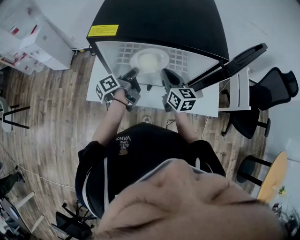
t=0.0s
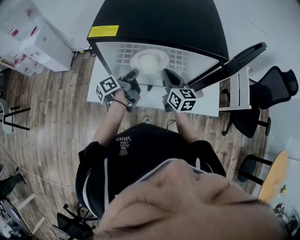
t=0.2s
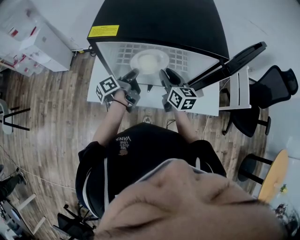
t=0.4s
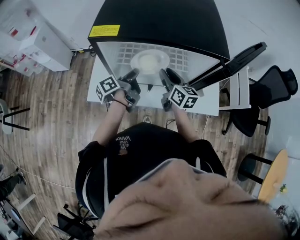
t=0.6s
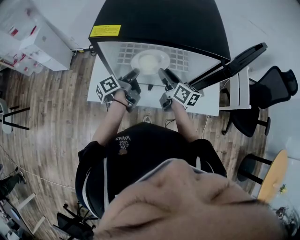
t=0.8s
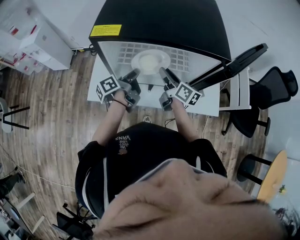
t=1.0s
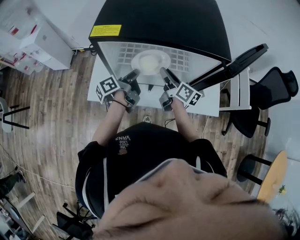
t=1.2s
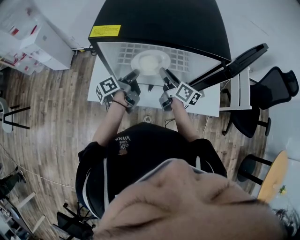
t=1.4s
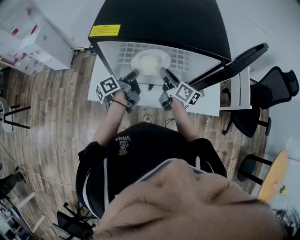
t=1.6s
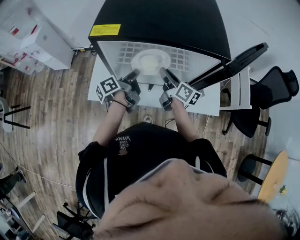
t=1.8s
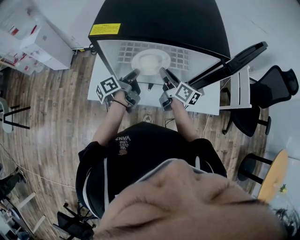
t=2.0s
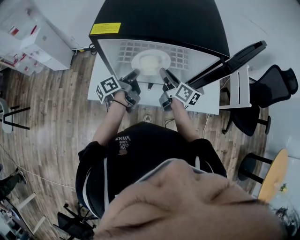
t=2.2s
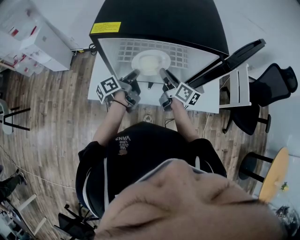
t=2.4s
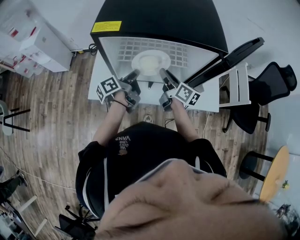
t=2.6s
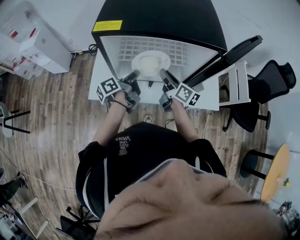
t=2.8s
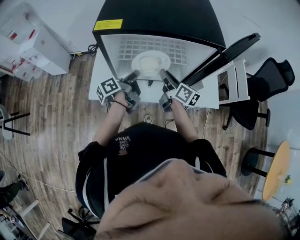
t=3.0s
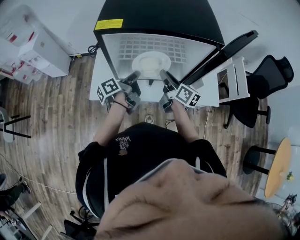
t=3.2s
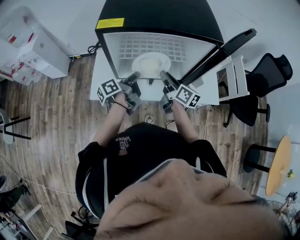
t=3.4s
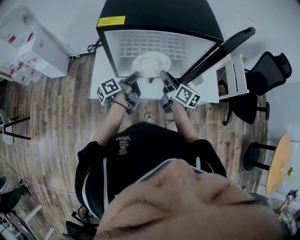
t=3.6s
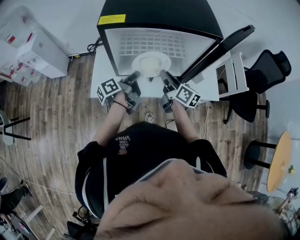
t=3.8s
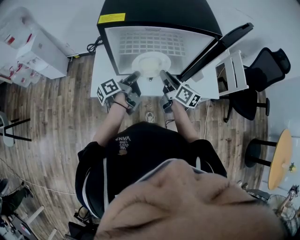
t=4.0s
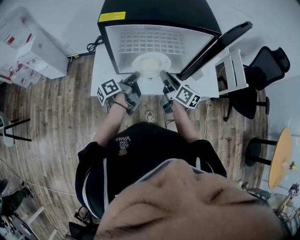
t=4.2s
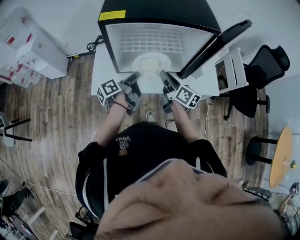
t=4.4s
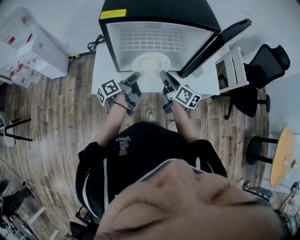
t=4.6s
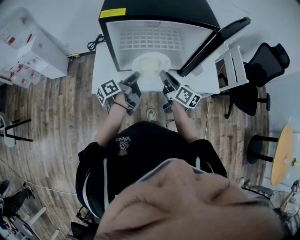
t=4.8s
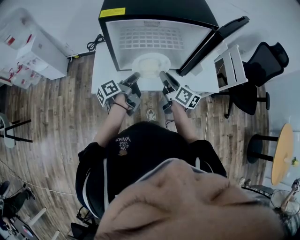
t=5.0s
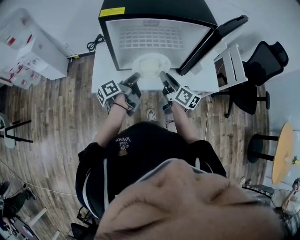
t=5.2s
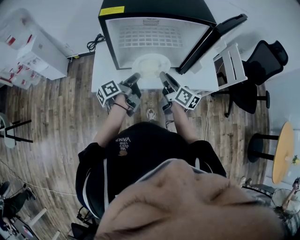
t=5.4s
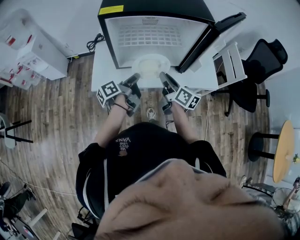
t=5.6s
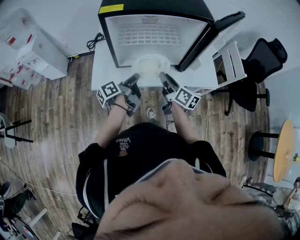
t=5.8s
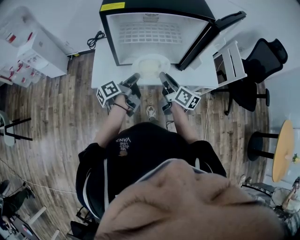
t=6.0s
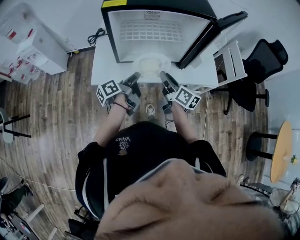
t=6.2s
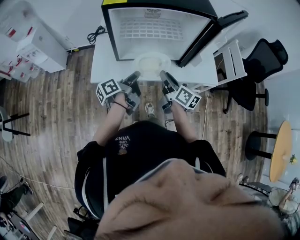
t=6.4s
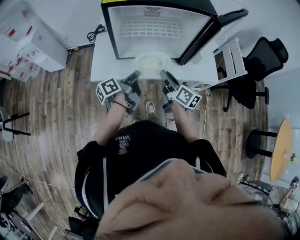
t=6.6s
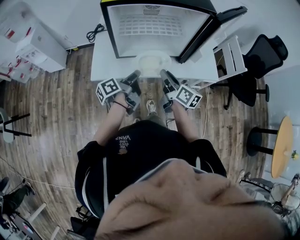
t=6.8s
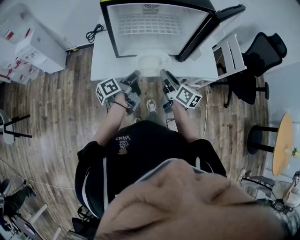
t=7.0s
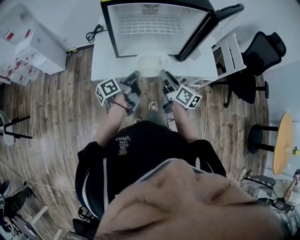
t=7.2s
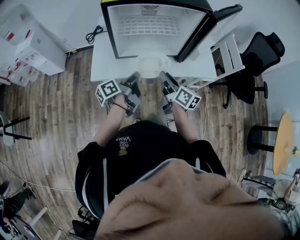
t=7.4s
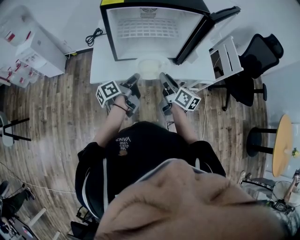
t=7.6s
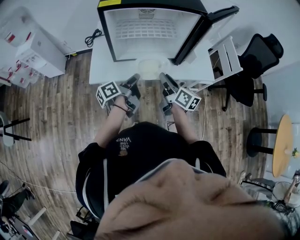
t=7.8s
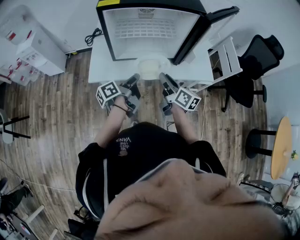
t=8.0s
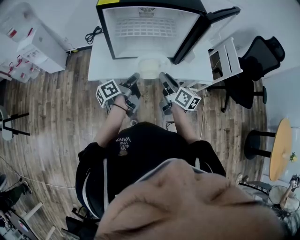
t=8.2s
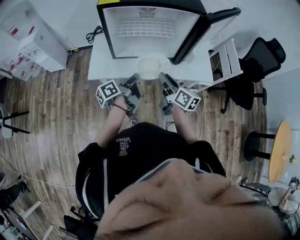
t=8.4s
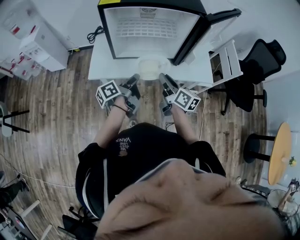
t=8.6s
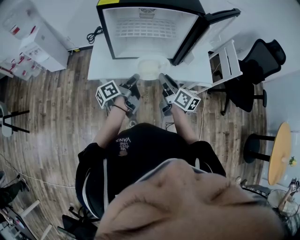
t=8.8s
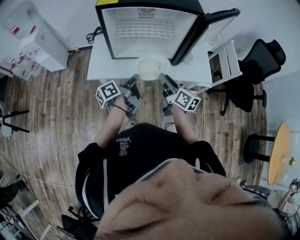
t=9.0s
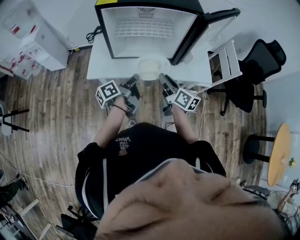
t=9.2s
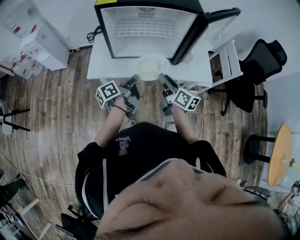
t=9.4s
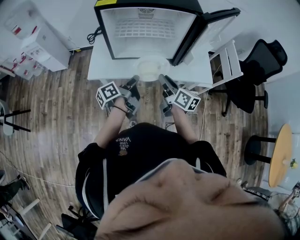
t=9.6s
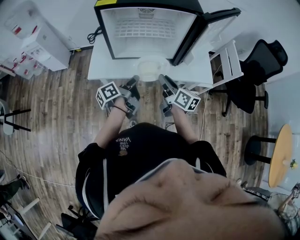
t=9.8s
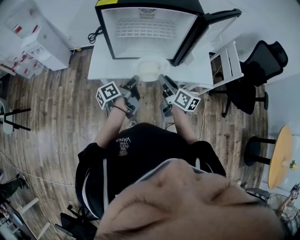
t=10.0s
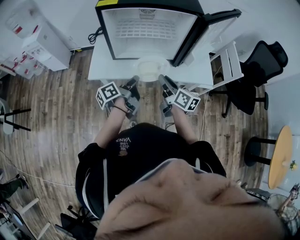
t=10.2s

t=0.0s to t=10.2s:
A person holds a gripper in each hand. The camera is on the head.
t=0.0s to t=1.4s: The right gripper swivels some 30 degrees, and opens.
t=1.4s to t=3.0s: The grippers stay close to where they were, moving slightly.
t=3.0s to t=4.4s: Both grippers travel together backward, some 5 cm.
t=4.4s to t=5.8s: Both grippers move backward, some 5 cm.
t=5.8s to t=7.2s: The grippers stay close to where they were, moving slightly.
t=7.2s to t=8.8s: There are only small adjustments of the grippers.
t=8.8s to t=10.2s: Neither gripper changes place.

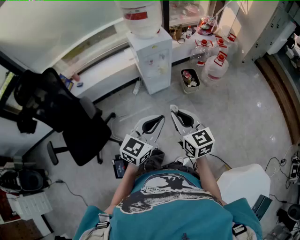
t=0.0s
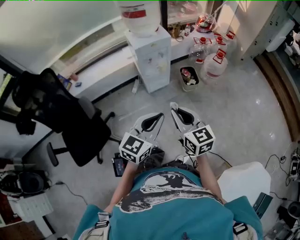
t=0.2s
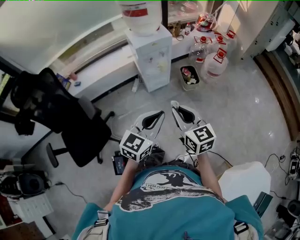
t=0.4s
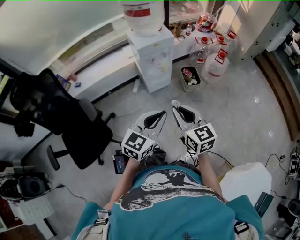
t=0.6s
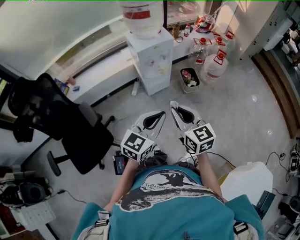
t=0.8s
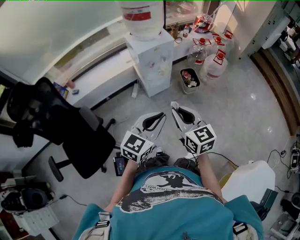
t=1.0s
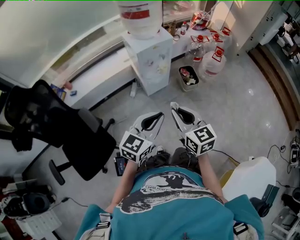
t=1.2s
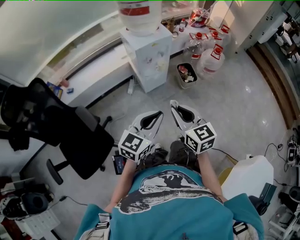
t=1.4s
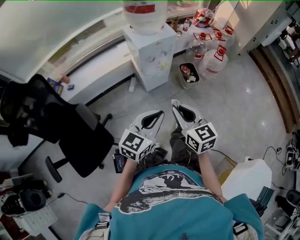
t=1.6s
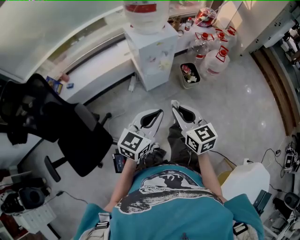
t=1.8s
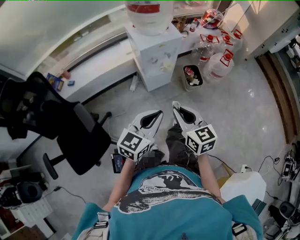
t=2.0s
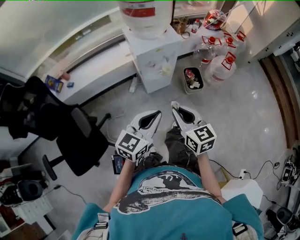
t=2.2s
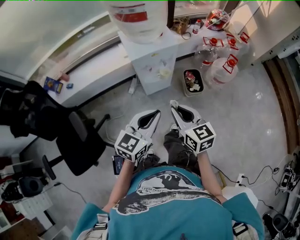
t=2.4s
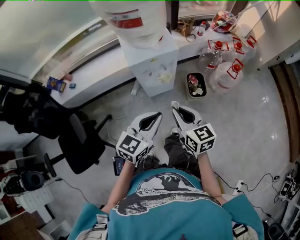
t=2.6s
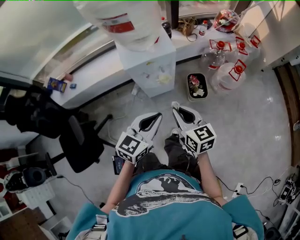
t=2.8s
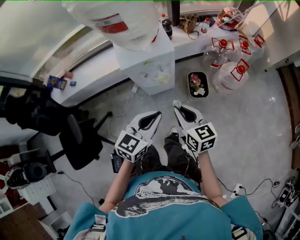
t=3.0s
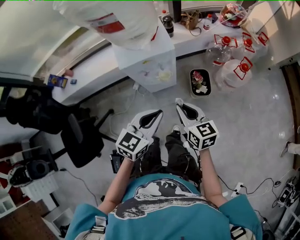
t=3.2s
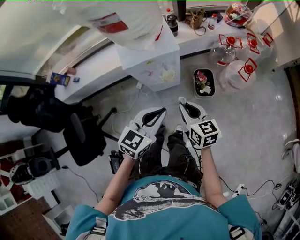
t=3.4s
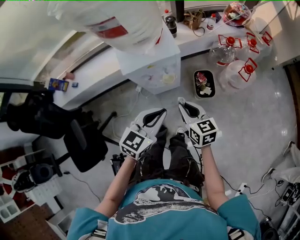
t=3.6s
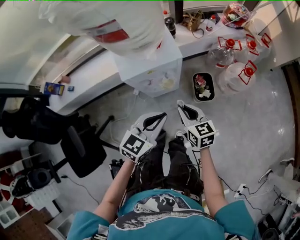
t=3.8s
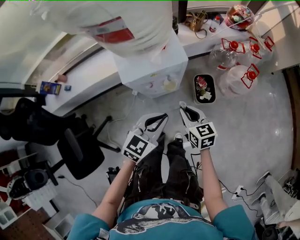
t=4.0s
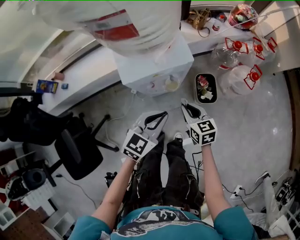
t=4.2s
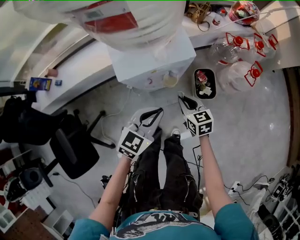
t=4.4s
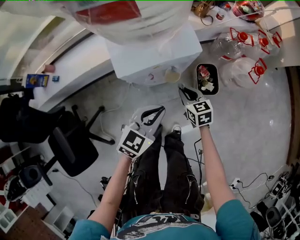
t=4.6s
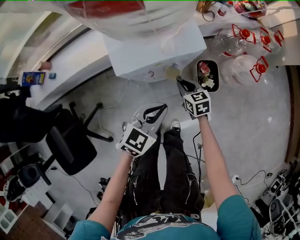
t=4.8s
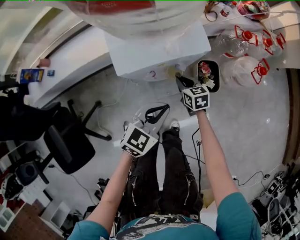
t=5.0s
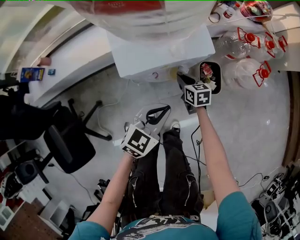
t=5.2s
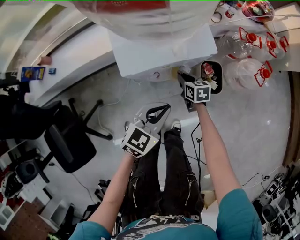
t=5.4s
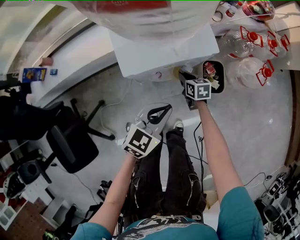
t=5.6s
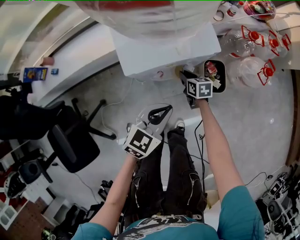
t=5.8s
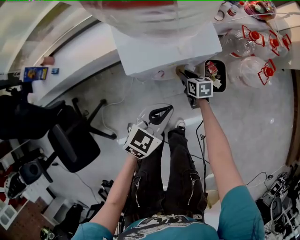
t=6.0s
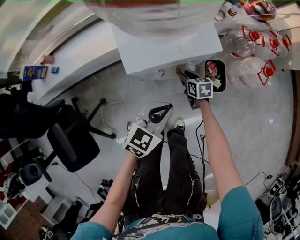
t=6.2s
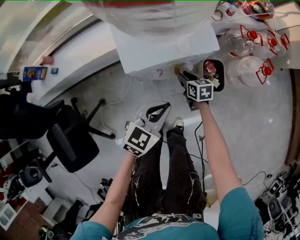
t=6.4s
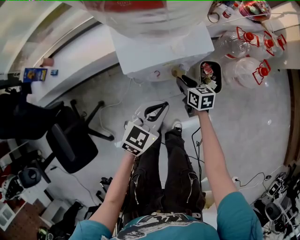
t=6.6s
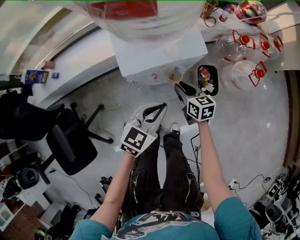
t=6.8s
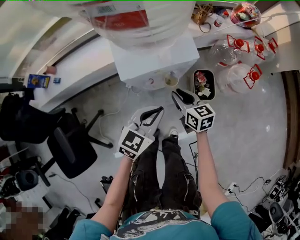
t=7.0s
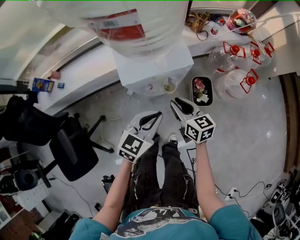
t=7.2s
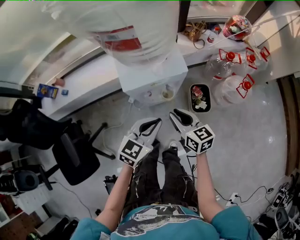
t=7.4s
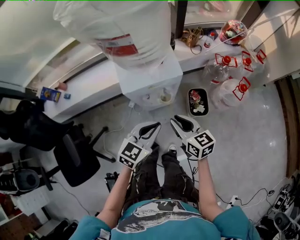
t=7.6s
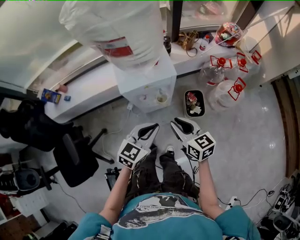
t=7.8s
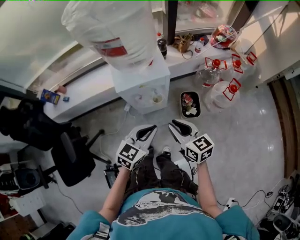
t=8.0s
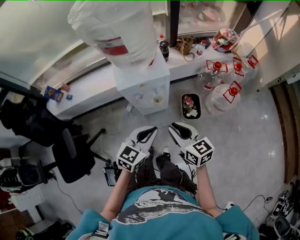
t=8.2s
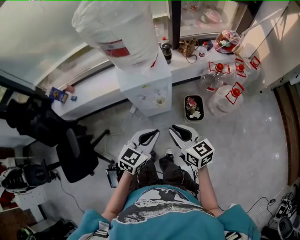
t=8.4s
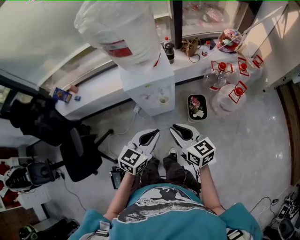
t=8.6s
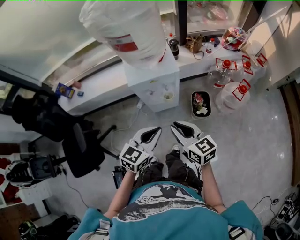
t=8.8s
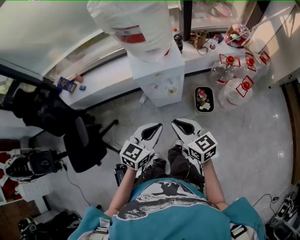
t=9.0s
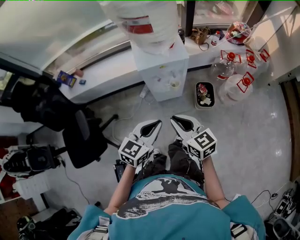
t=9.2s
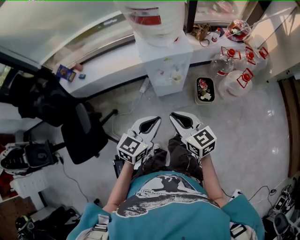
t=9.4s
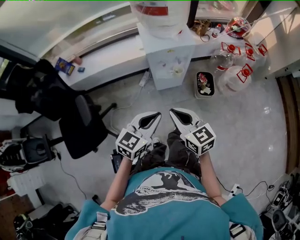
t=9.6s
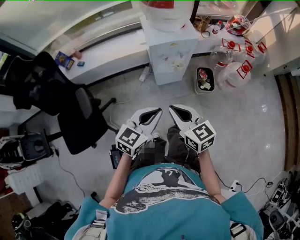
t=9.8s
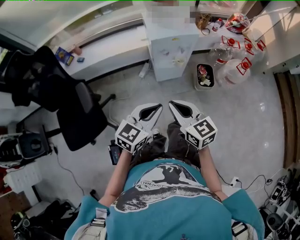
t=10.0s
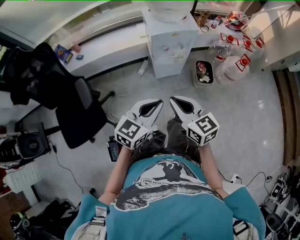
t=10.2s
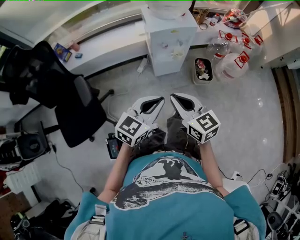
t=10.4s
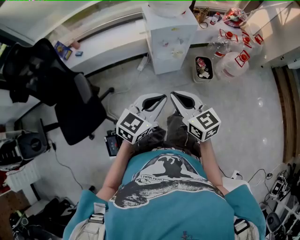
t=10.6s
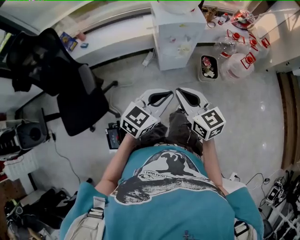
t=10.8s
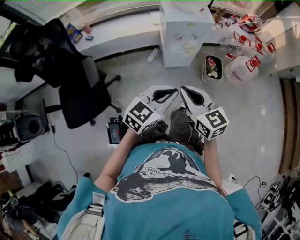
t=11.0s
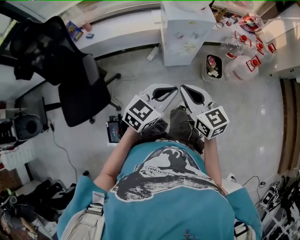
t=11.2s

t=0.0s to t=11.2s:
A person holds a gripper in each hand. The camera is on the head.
t=0.0s to t=1.6s: The grippers both shift to the left and forward by about 15 cm.
t=1.6s to t=3.2s: The two grippers go about 30 cm forward and to the right.
t=3.2s to t=4.8s: The left gripper shifts approximately 20 cm downward, forward and to the left; the right gripper goes some 30 cm downward and forward, and swivels some 20 degrees.
t=4.8s to t=6.4s: The right gripper changes place by approximately 5 cm.
t=6.4s to t=8.0s: The left gripper travels upward, backward and to the right by some 15 cm; the right gripper heads upward and backward, covering about 35 cm, and changes its angle by about 30 degrees.
t=8.0s to t=9.6s: The two grippers go roughly 20 cm backward and to the left.
t=9.6s to t=11.2s: Both grippers travel together backward, approximately 10 cm.

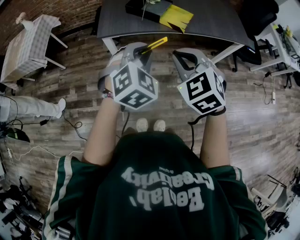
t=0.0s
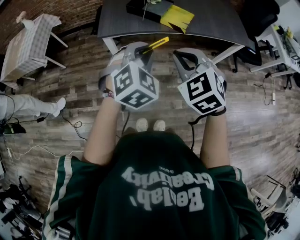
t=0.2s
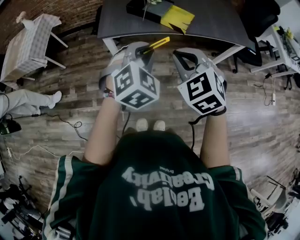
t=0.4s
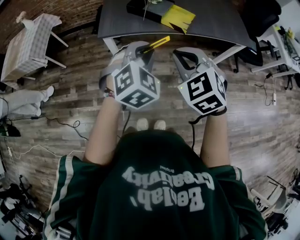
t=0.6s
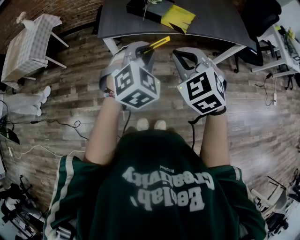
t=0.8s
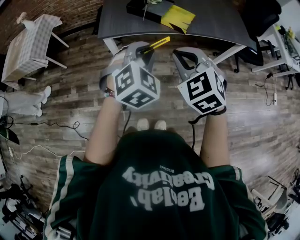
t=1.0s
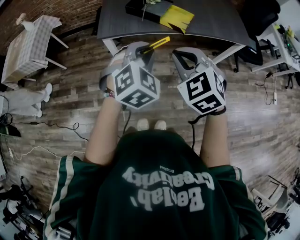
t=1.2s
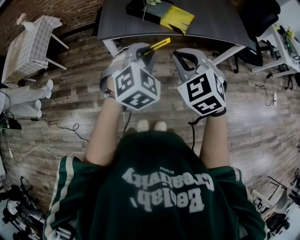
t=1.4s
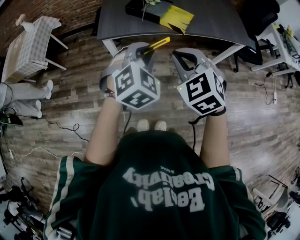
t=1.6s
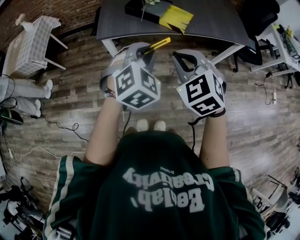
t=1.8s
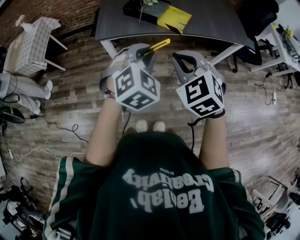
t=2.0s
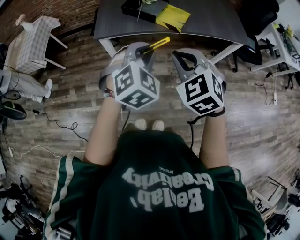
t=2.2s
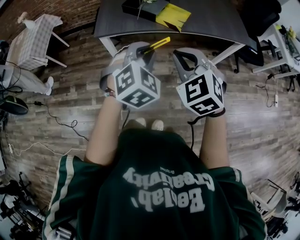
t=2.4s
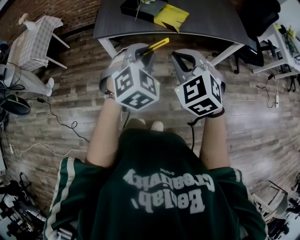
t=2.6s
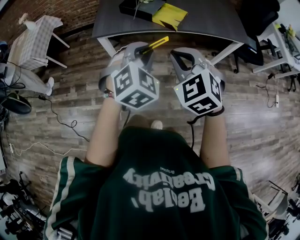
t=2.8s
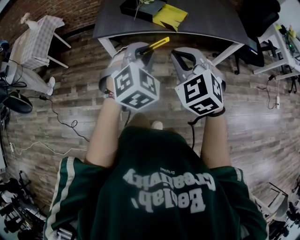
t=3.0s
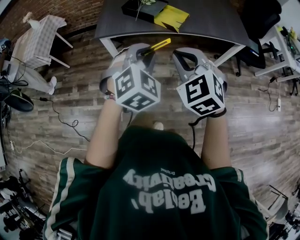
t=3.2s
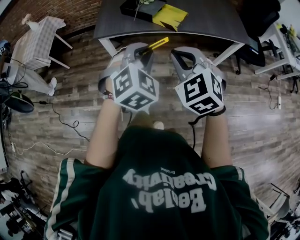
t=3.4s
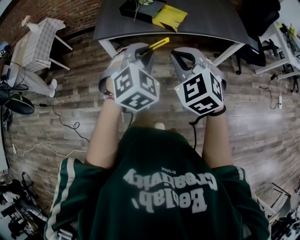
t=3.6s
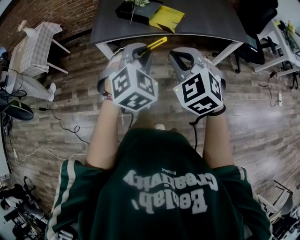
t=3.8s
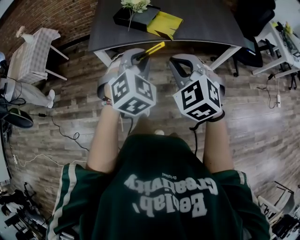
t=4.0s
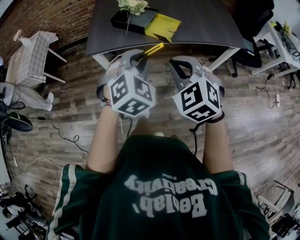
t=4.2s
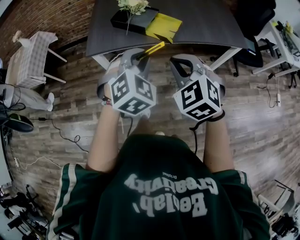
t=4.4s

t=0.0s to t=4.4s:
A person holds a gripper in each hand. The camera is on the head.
t=0.0s to t=1.4s: There are only small adjustments of the grippers.
t=1.4s to t=3.0s: The grippers both shift to the right by roughly 10 cm.
t=3.0s to t=4.4s: Both grippers travel together forward, approximately 10 cm.
